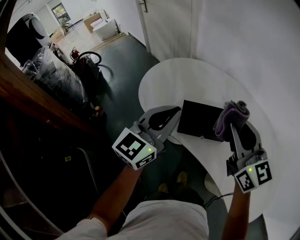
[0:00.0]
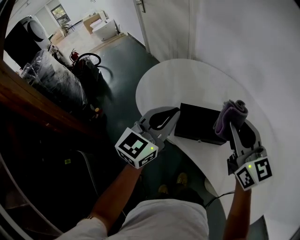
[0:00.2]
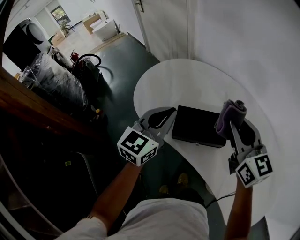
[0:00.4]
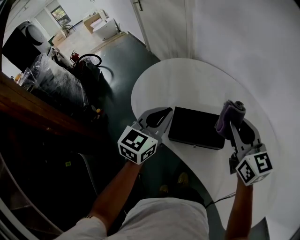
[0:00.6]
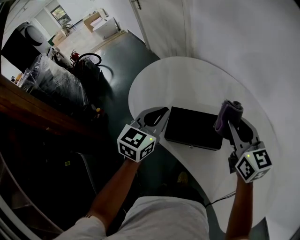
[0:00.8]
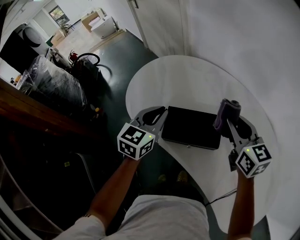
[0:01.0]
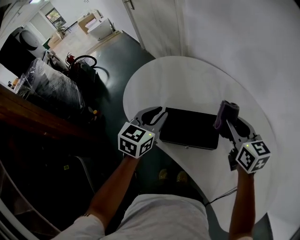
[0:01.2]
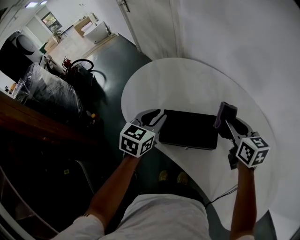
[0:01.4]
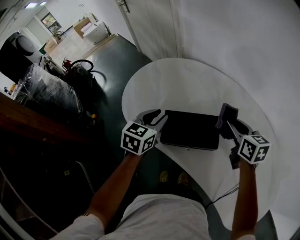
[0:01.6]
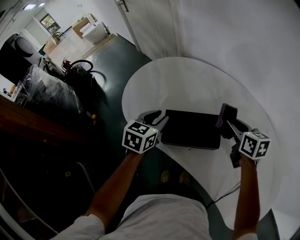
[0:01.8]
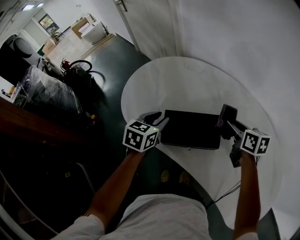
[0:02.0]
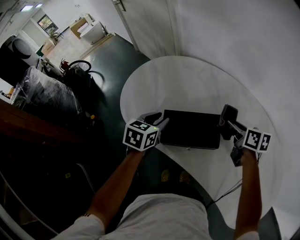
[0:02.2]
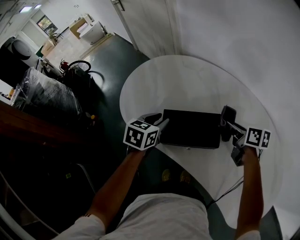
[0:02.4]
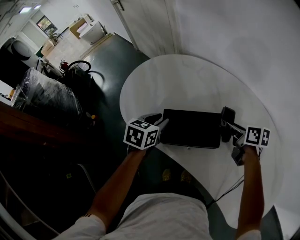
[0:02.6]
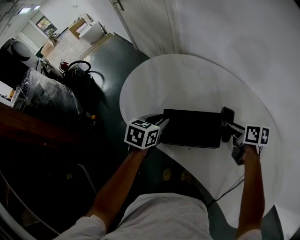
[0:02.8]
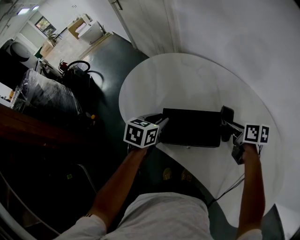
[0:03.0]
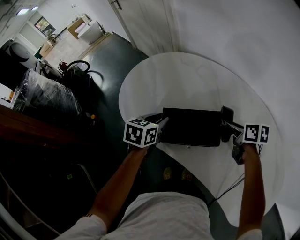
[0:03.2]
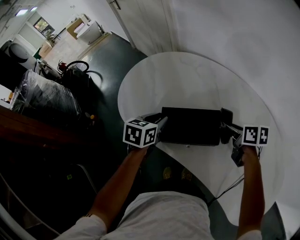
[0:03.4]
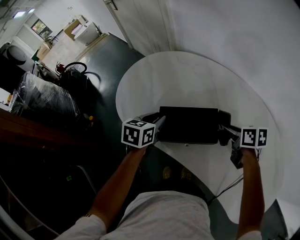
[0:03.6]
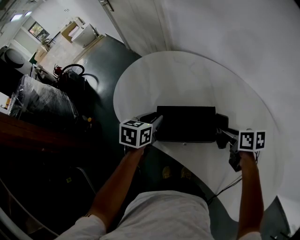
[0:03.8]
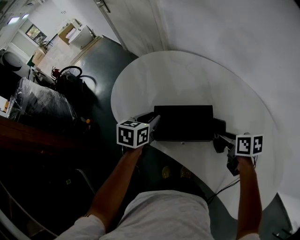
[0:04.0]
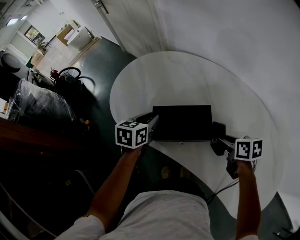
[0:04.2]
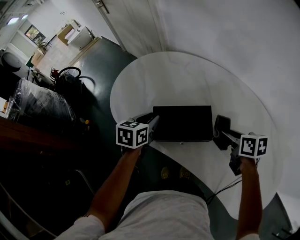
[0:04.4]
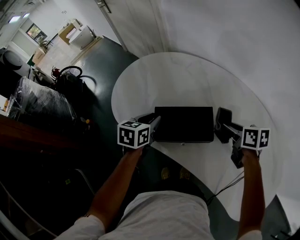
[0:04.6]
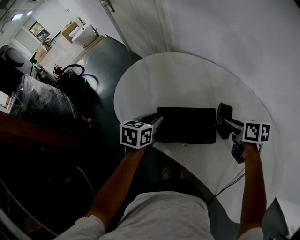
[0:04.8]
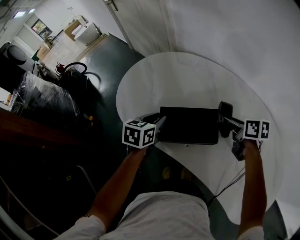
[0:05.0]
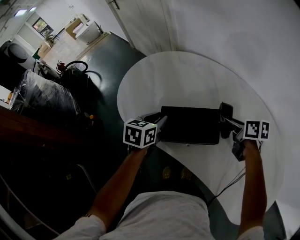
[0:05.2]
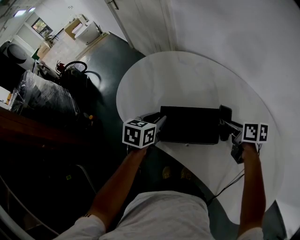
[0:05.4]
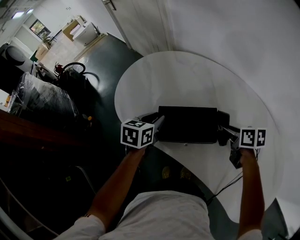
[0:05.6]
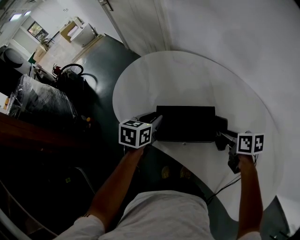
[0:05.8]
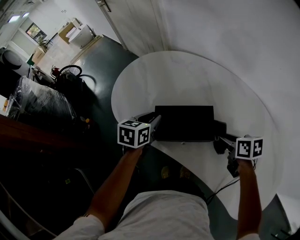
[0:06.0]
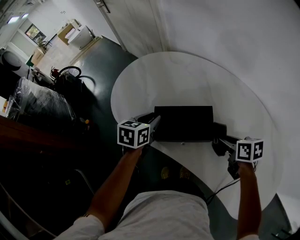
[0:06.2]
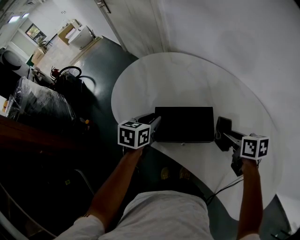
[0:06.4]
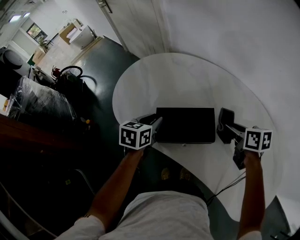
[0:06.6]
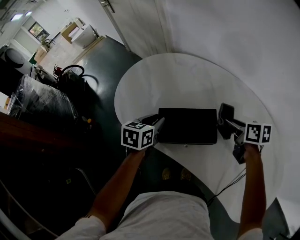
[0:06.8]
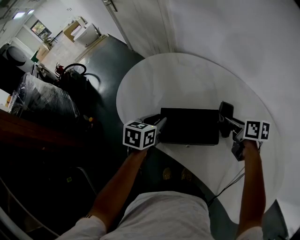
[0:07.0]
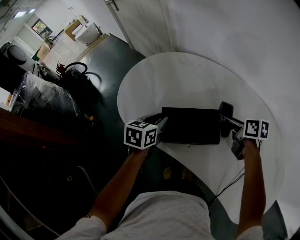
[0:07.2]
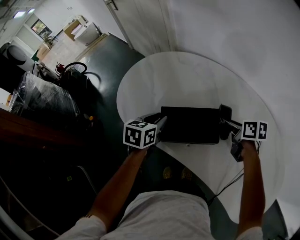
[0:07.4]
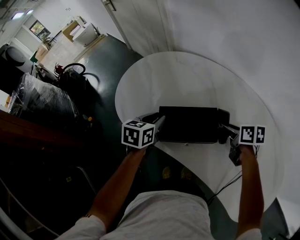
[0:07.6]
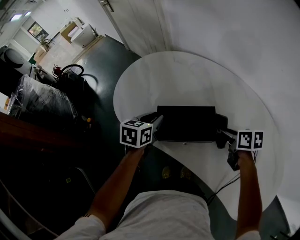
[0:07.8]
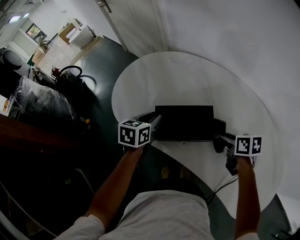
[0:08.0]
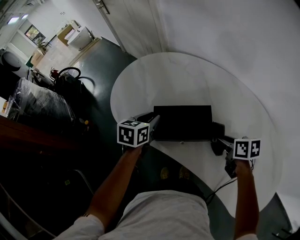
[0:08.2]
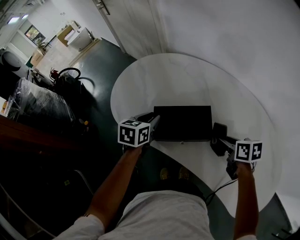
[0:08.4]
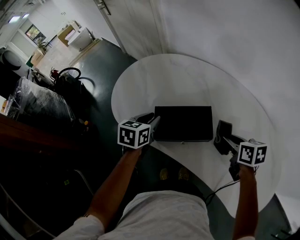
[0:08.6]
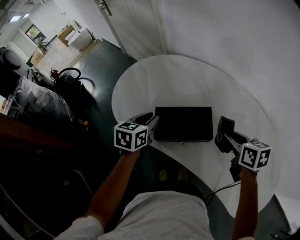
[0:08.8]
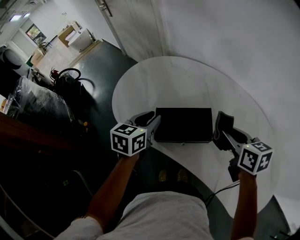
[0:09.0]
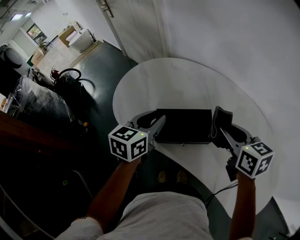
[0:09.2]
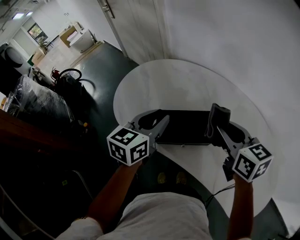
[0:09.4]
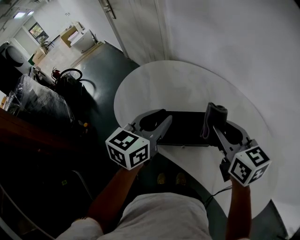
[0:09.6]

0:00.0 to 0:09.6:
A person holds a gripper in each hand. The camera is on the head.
0:00.0 to 0:01.6: The left gripper moves downward and forward, roughly 20 cm, angles its fingers downward, by roughly 30 degrees, and opens its fingers, while the right gripper goes about 25 cm downward, forward and to the right, and turns by some 30 degrees.
0:01.6 to 0:03.2: The right gripper moves downward, about 10 cm, and changes its angle by about 30 degrees. Meanwhile the left gripper shifts about 5 cm downward.
0:03.2 to 0:04.8: The right gripper reaches about 10 cm backward, then returns.
0:04.8 to 0:06.4: The right gripper heads backward, covering some 5 cm.
0:06.4 to 0:08.0: The right gripper moves about 10 cm forward and comes back.
0:08.0 to 0:09.6: Both grippers move upward, roughly 20 cm. The left gripper turns by some 30 degrees. Meanwhile the right gripper turns by approximately 40 degrees.

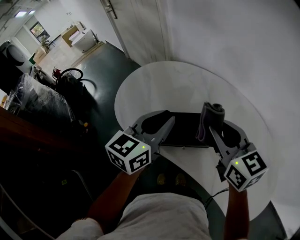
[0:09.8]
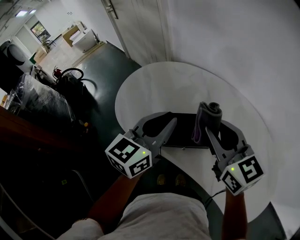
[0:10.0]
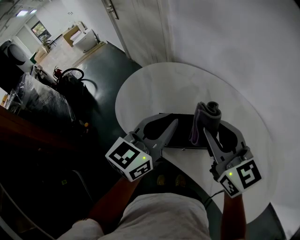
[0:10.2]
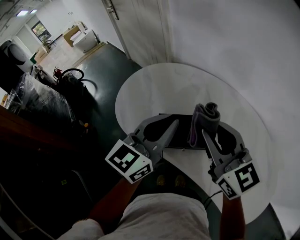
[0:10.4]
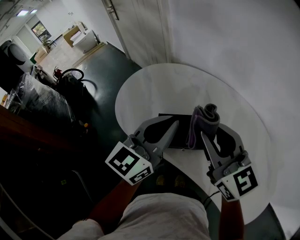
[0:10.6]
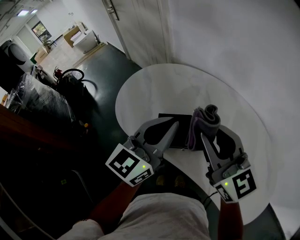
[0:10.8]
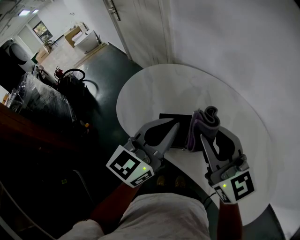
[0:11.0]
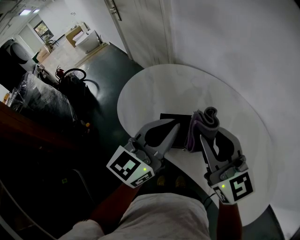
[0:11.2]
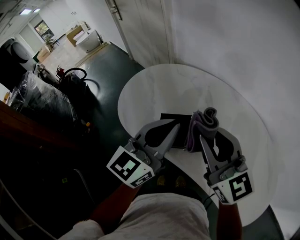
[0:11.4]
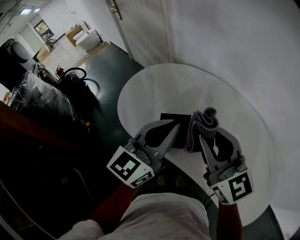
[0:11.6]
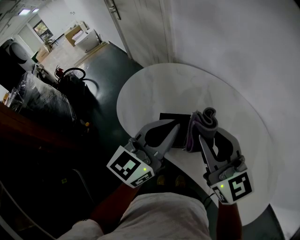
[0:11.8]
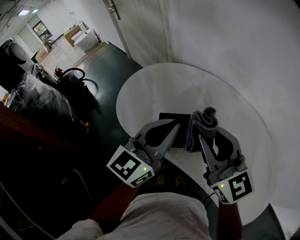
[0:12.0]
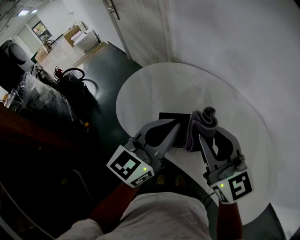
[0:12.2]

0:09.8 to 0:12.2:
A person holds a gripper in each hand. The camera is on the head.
0:09.8 to 0:11.0: The right gripper changes place by approximately 5 cm, and changes its angle by about 20 degrees. The left gripper heads upward, covering some 5 cm.
0:11.0 to 0:12.2: The two grippers keep their place.

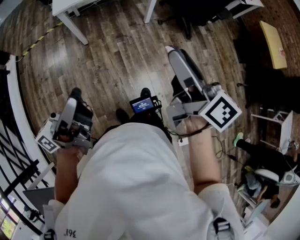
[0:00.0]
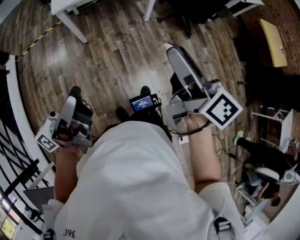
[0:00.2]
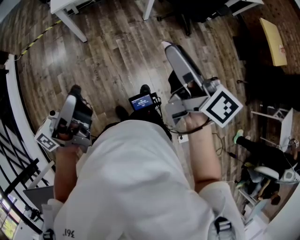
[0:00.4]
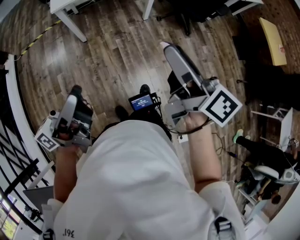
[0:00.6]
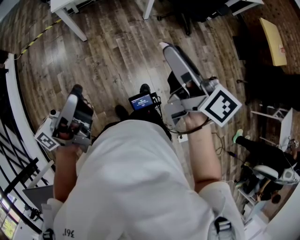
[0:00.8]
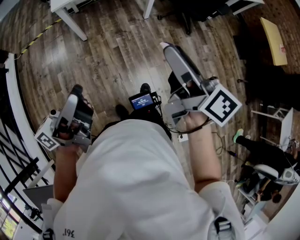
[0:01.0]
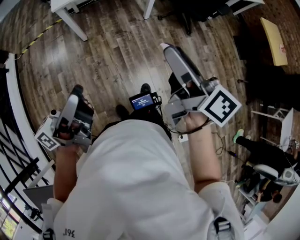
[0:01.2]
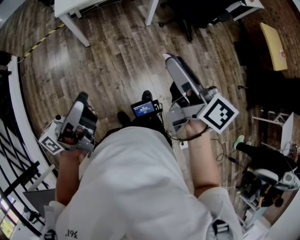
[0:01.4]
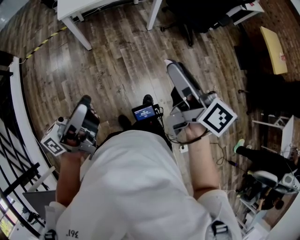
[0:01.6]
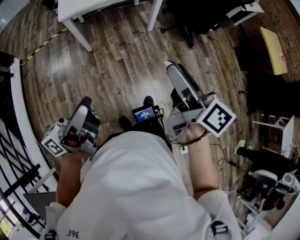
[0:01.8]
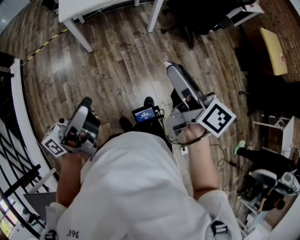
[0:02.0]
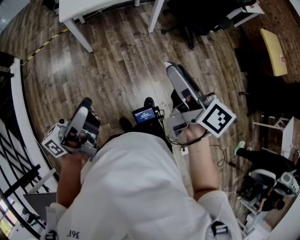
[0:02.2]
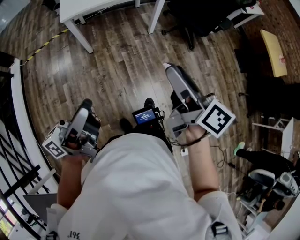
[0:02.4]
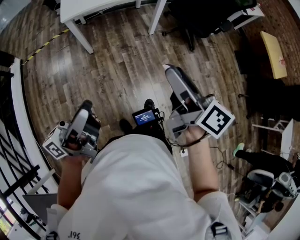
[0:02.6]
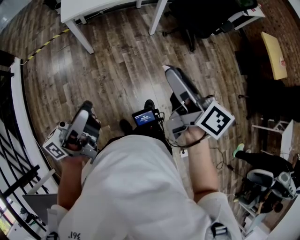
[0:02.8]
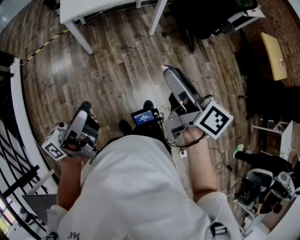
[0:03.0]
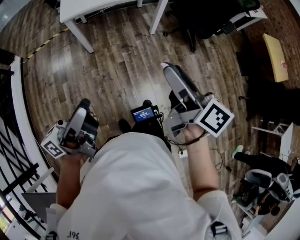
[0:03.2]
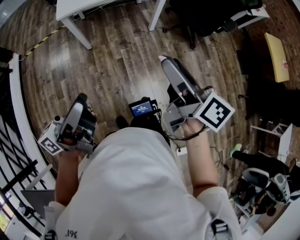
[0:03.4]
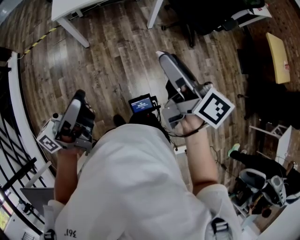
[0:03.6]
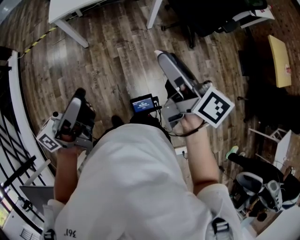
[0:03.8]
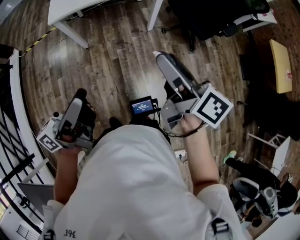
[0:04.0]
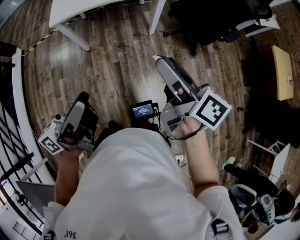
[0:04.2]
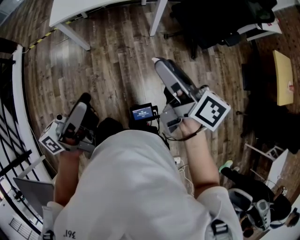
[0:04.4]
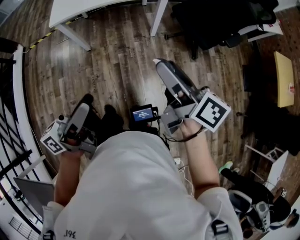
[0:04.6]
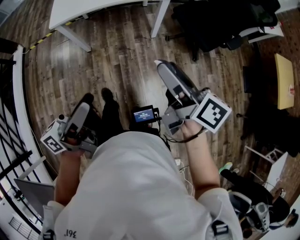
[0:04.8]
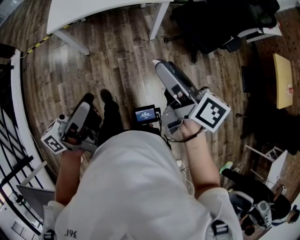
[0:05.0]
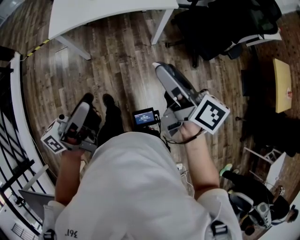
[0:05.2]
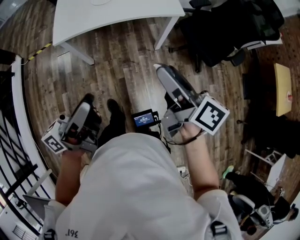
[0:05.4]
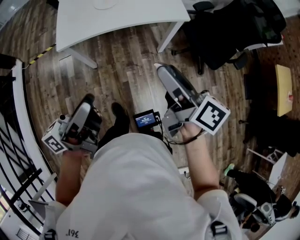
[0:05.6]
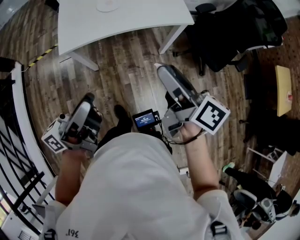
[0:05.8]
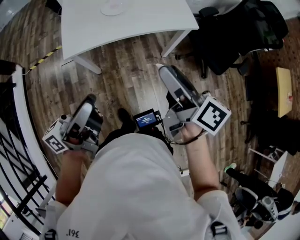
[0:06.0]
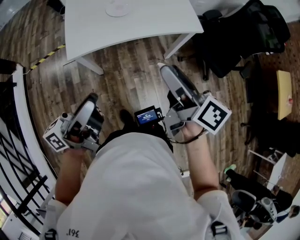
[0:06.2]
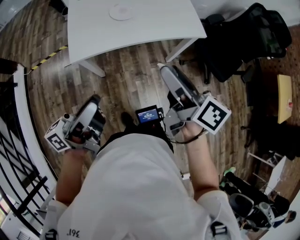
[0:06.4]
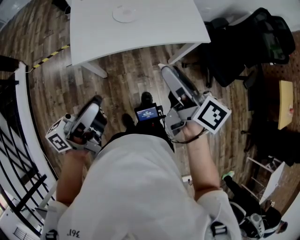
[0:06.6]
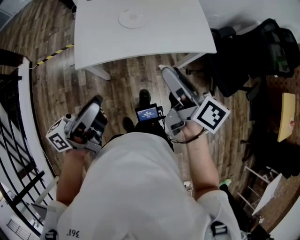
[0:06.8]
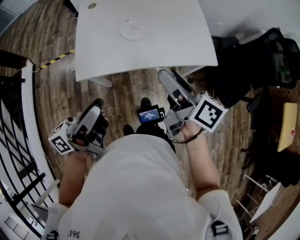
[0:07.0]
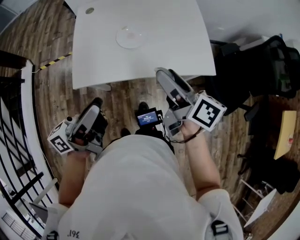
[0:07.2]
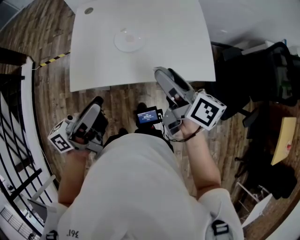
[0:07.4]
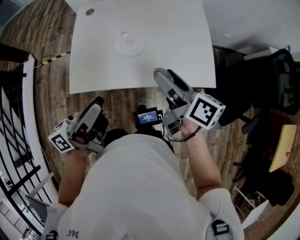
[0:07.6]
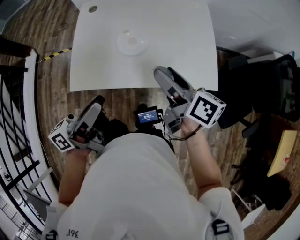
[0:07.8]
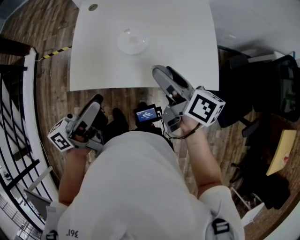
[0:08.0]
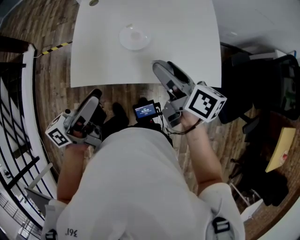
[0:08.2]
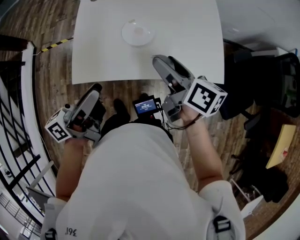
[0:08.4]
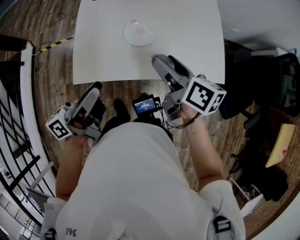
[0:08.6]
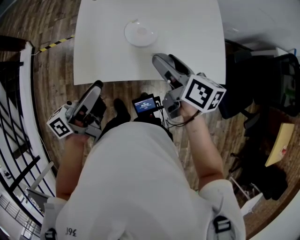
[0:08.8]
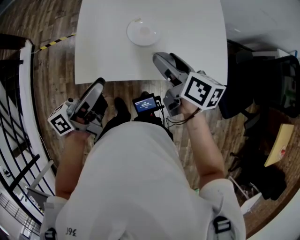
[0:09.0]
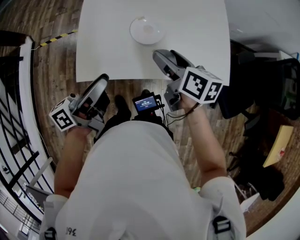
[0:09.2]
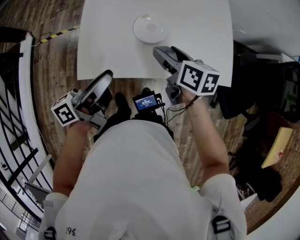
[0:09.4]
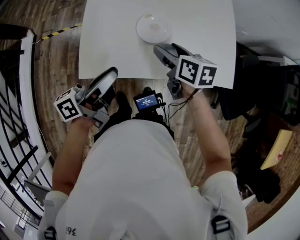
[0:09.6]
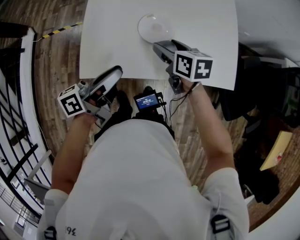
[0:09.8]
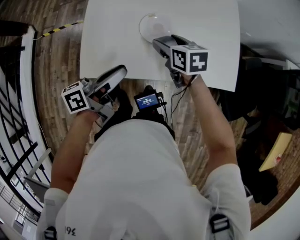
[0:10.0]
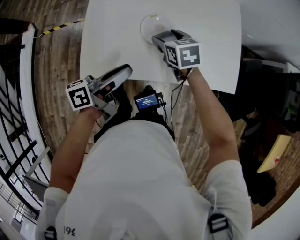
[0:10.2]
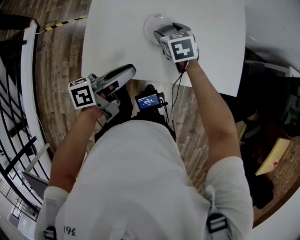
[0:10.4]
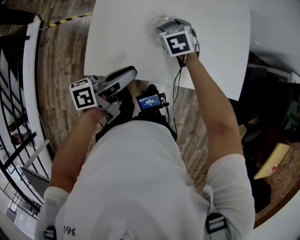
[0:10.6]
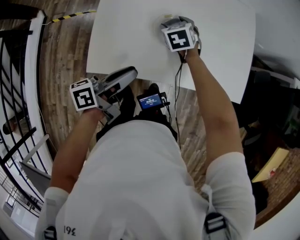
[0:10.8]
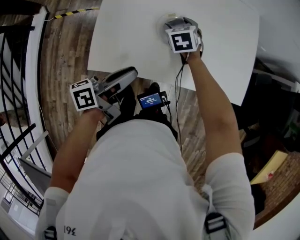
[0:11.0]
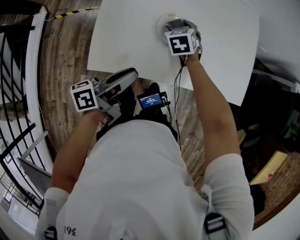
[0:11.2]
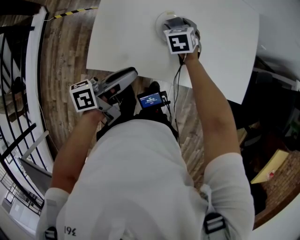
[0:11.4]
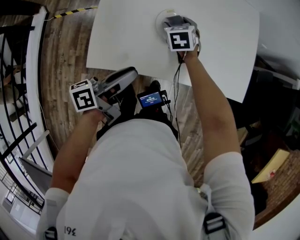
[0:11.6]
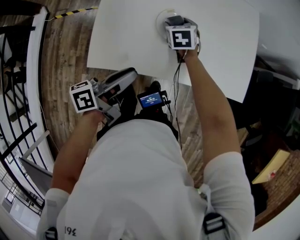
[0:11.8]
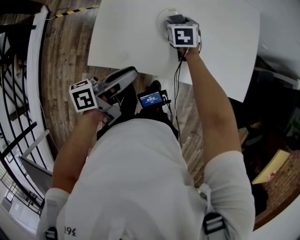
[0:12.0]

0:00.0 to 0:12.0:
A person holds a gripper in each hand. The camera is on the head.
0:00.0 to 0:03.0: There are only small adjustments of the grippers.
0:03.0 to 0:04.4: The right gripper heads forward and to the right, covering approximately 20 cm. Meanwhile the left gripper moves to the right and forward, approximately 25 cm.
0:04.4 to 0:06.0: The right gripper moves to the left and forward, roughly 30 cm. The left gripper heads forward and to the left, covering about 35 cm.
0:06.0 to 0:07.6: The grippers both shift forward by approximately 30 cm.
0:07.6 to 0:09.0: Both grippers move to the left, forward and downward, about 10 cm.
0:09.0 to 0:10.4: The left gripper shifts roughly 10 cm downward and forward; the right gripper shifts approximately 20 cm downward, forward and to the left, and rotates around the line of its fingers by about 50 degrees, counterclockwise from behind.
0:10.4 to 0:12.0: The right gripper heads downward, covering about 5 cm.
